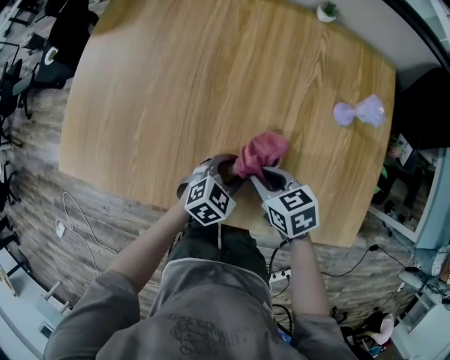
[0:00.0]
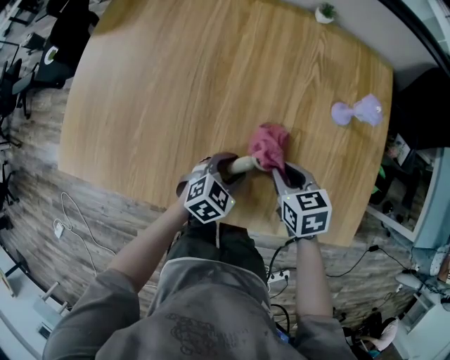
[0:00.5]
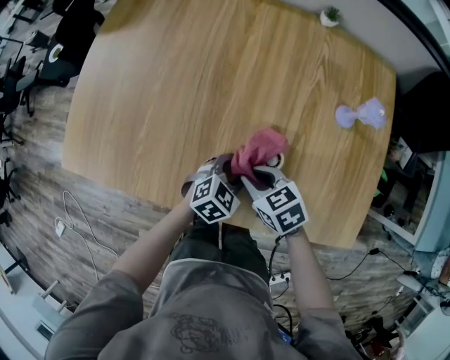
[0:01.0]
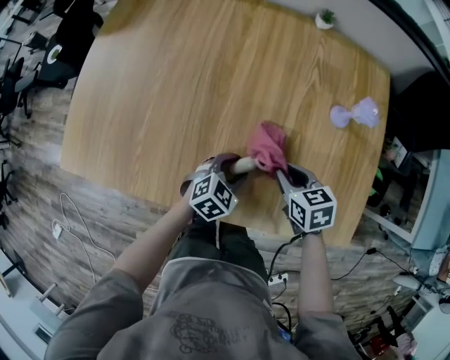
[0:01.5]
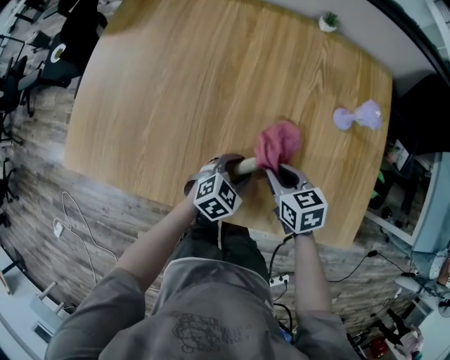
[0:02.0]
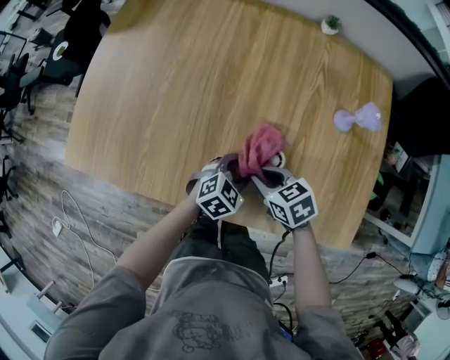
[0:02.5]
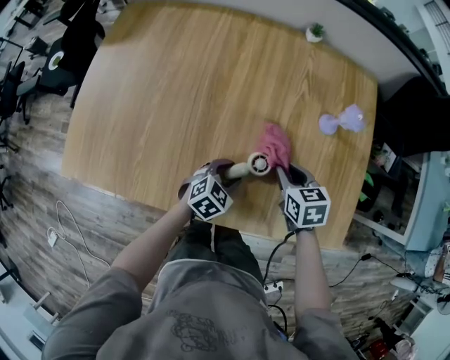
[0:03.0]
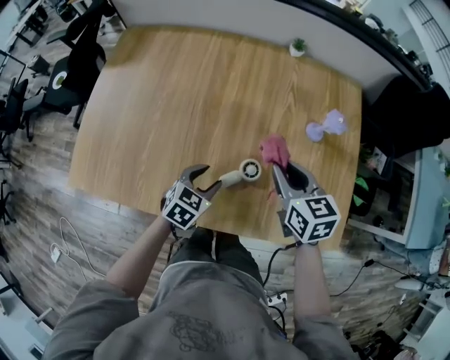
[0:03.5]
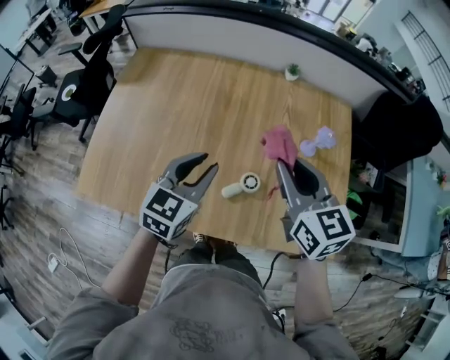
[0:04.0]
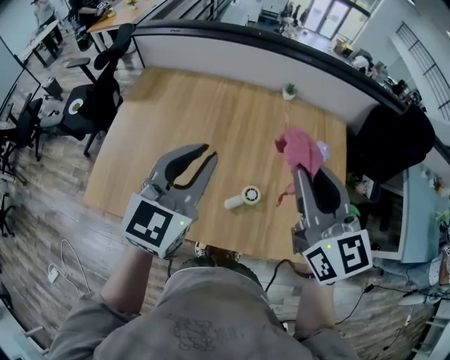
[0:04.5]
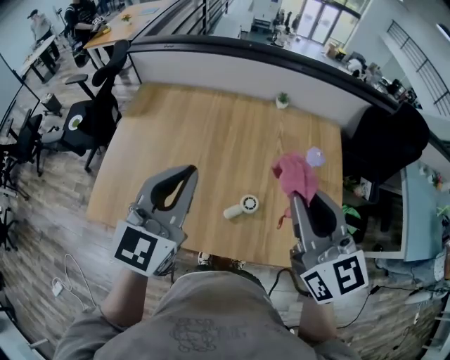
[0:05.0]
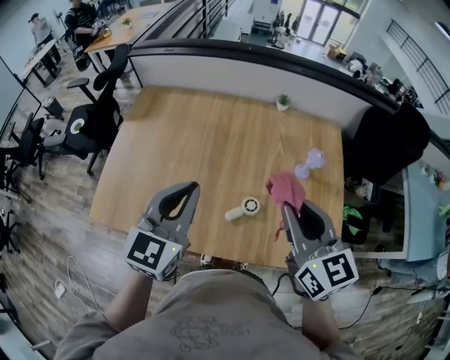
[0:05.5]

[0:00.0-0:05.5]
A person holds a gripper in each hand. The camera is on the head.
0:00.0 to 0:02.0: The right gripper goes left and right, roughly 10 cm each way, reversing 2 times.
0:02.0 to 0:03.5: The left gripper heads upward and to the left, covering roughly 10 cm. The right gripper heads upward, covering some 15 cm.
0:03.5 to 0:05.5: The right gripper moves upward, roughly 20 cm, and swivels about 20 degrees. Meanwhile the left gripper shifts about 35 cm upward, tilts its fingers approximately 40 degrees upward, and closes up.

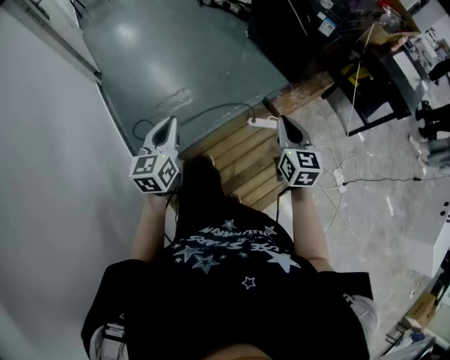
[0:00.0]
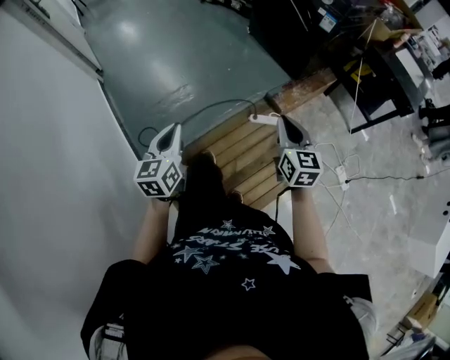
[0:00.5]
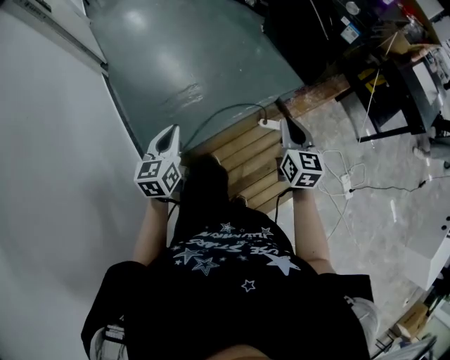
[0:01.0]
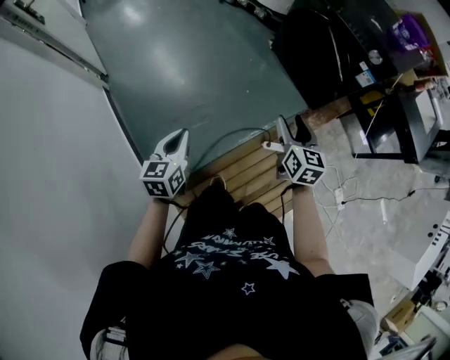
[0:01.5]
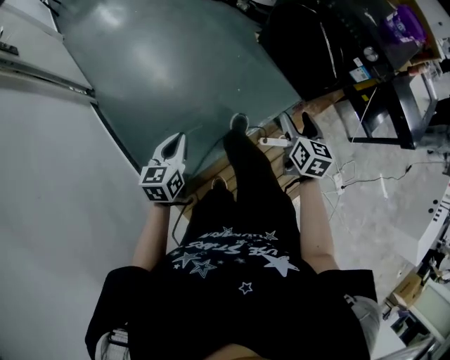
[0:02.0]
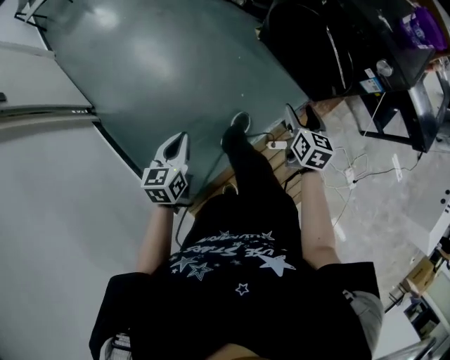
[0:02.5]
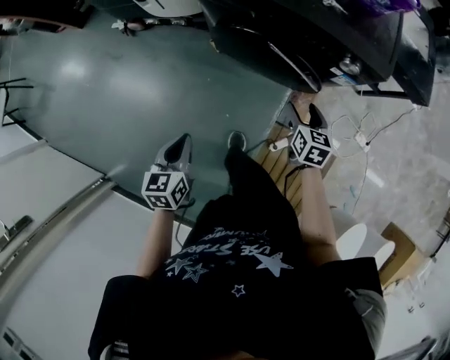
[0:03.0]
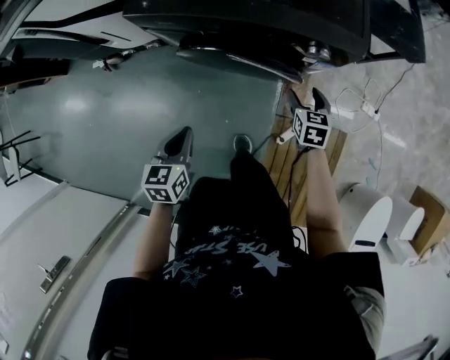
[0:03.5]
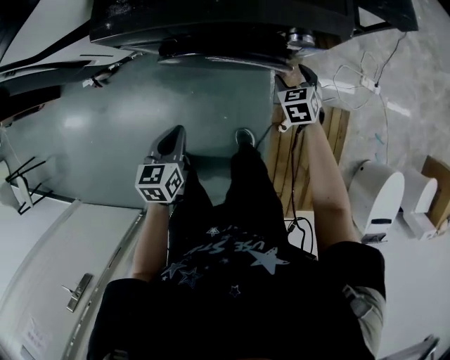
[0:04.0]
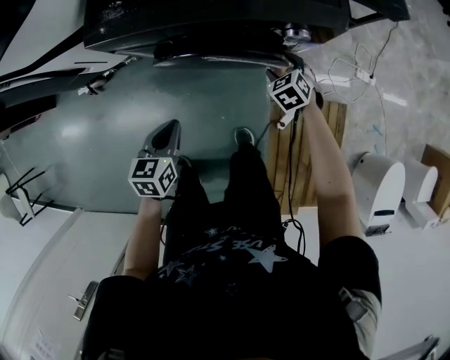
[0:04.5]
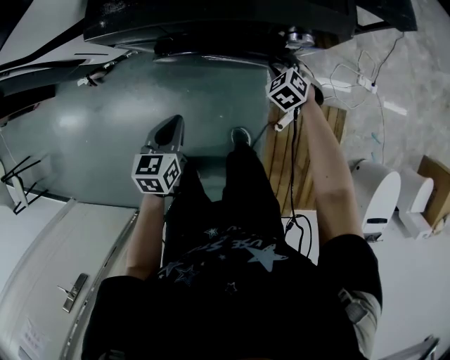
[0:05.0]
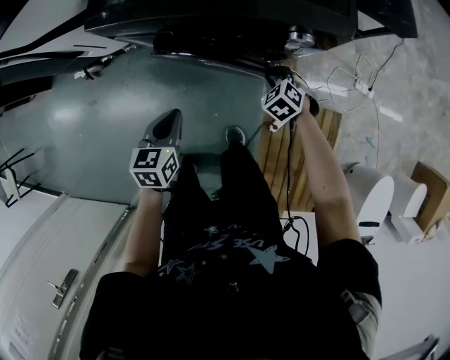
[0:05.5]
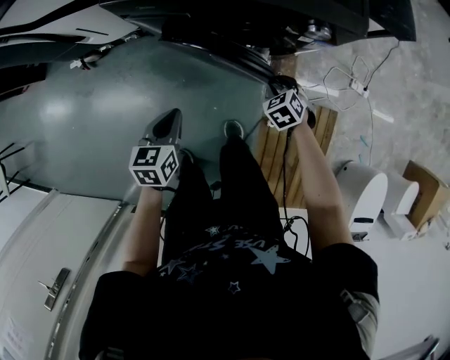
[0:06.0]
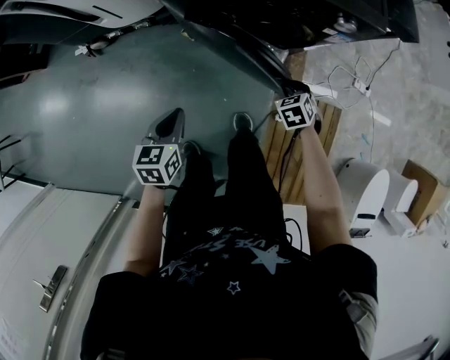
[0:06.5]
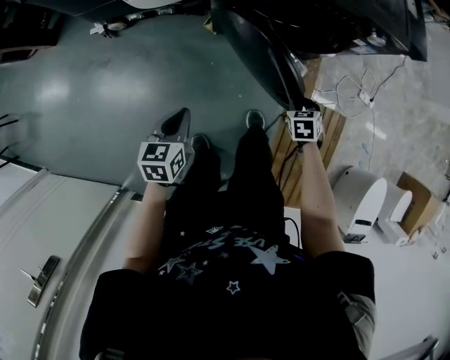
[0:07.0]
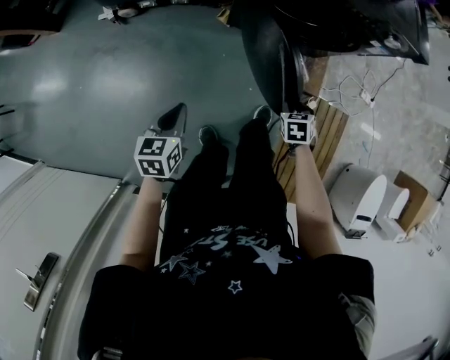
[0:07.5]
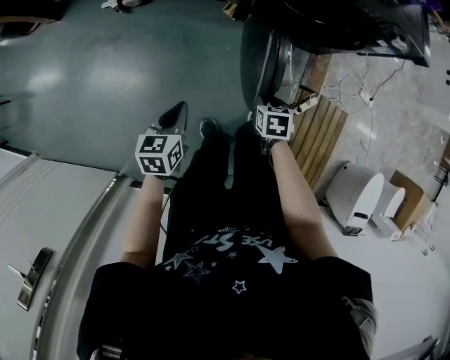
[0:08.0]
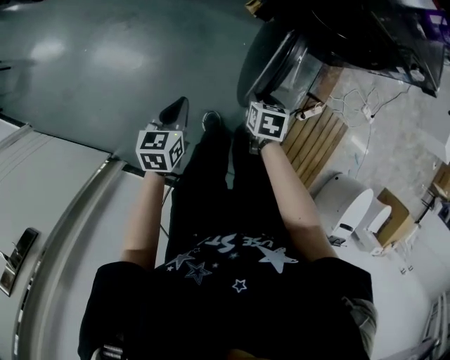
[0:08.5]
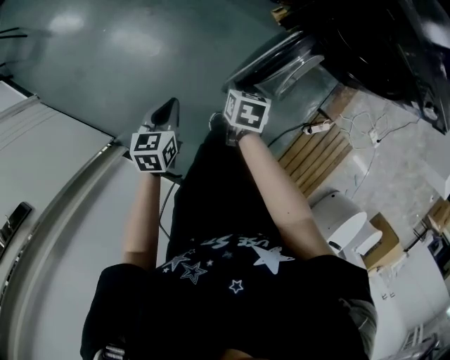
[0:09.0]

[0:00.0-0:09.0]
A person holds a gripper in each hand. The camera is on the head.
0:00.0 to 0:02.0: The left gripper shifts about 30 cm forward and to the left. The right gripper moves forward, about 35 cm, and opens up.
0:02.0 to 0:04.5: Both grippers are carried about 50 cm. The left gripper swivels roughly 60 degrees, while the right gripper rotates roughly 40 degrees.
0:04.5 to 0:07.0: The two grippers go about 25 cm backward and to the left. The right gripper closes up.
0:07.0 to 0:09.0: The right gripper moves about 40 cm, and turns by some 20 degrees, while the left gripper shifts by approximately 25 cm, and swivels approximately 20 degrees.

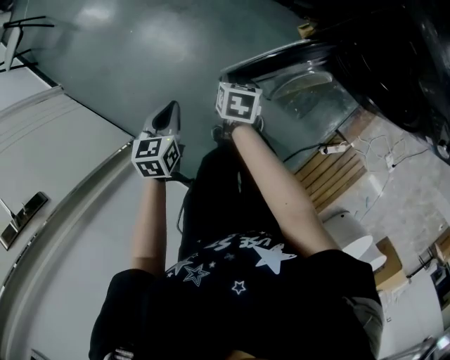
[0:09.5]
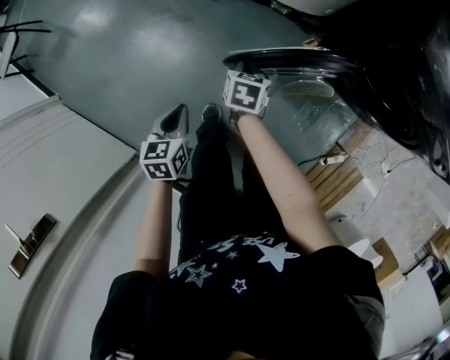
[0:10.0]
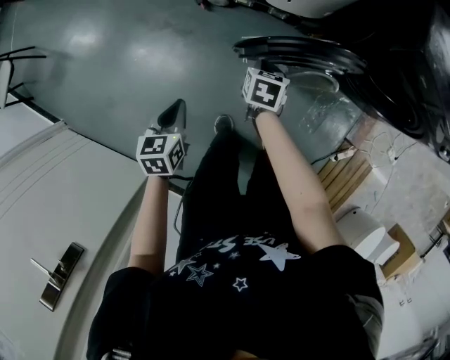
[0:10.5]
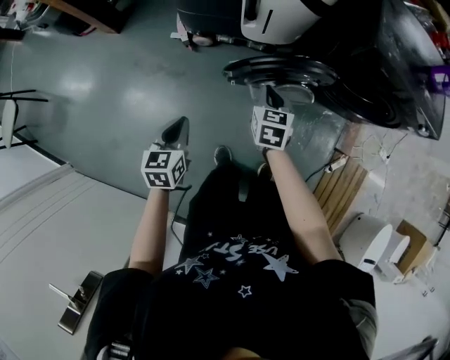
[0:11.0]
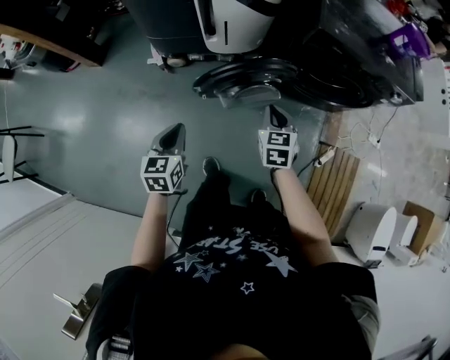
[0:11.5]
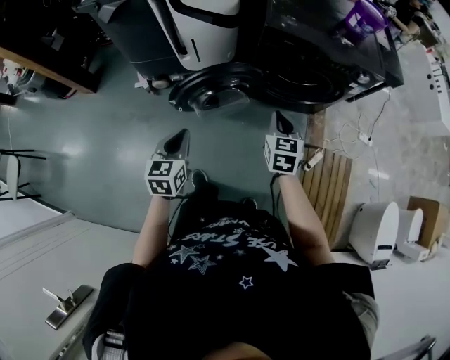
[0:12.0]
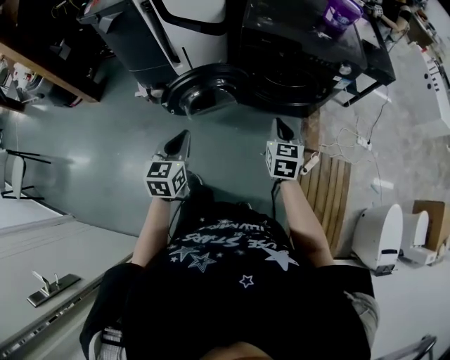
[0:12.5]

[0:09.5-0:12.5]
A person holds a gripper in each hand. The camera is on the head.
0:09.5 to 0:11.0: The right gripper moves some 20 cm, turns by roughly 30 degrees, and closes up. Meanwhile the left gripper changes place by approximately 20 cm, and swivels about 20 degrees.
0:11.0 to 0:12.5: The right gripper shifts about 40 cm to the right; the left gripper heads to the right and upward, covering about 35 cm.

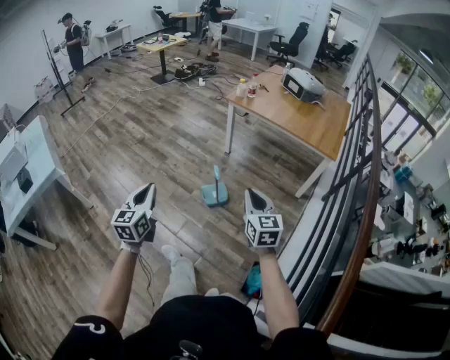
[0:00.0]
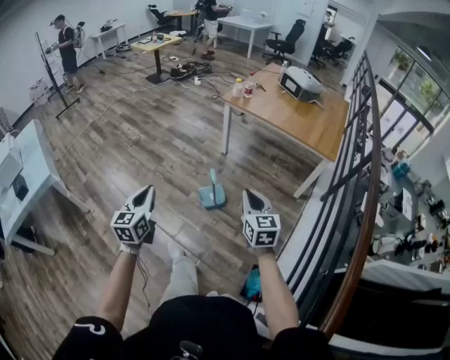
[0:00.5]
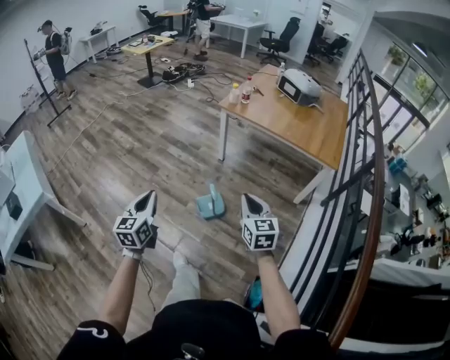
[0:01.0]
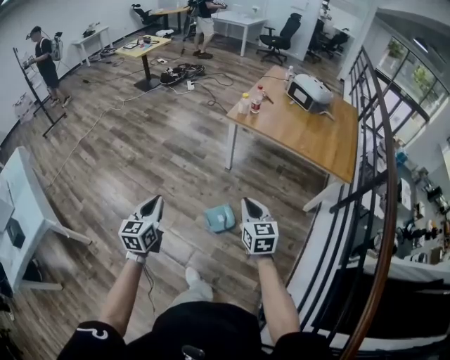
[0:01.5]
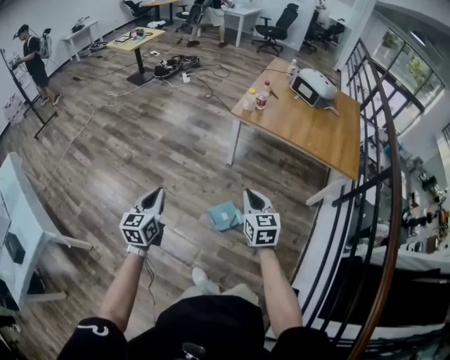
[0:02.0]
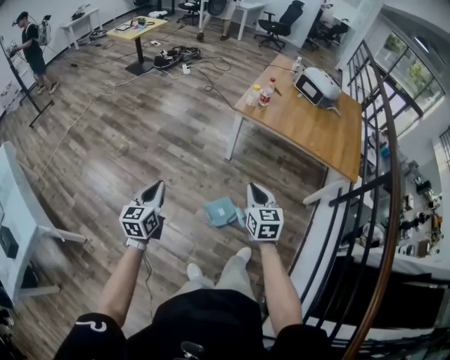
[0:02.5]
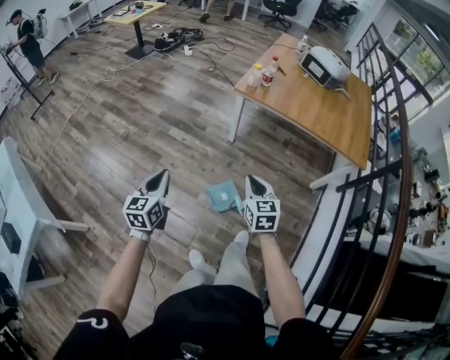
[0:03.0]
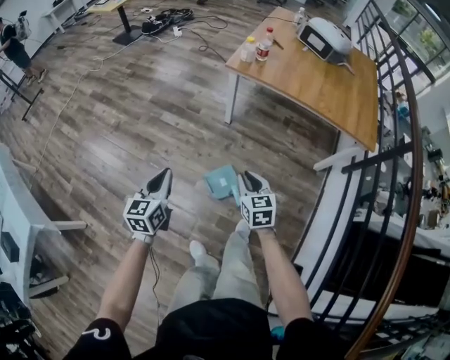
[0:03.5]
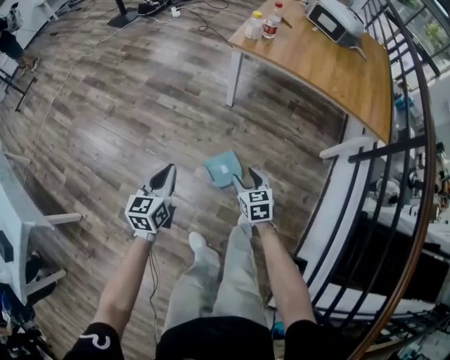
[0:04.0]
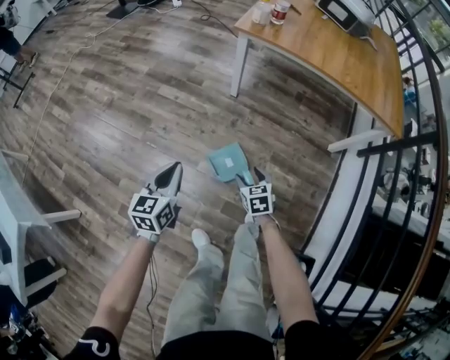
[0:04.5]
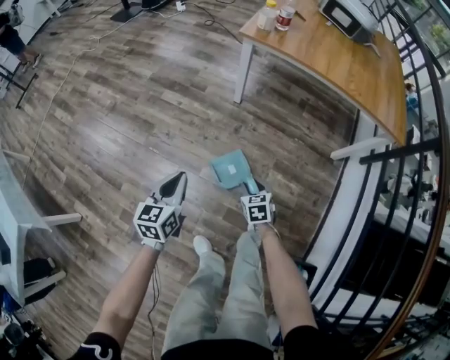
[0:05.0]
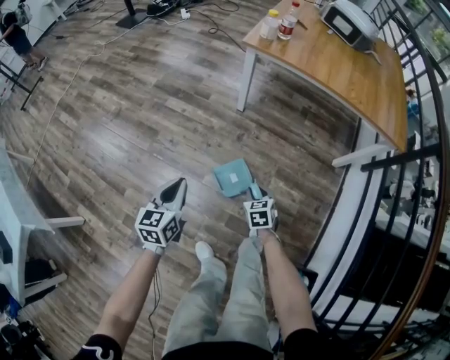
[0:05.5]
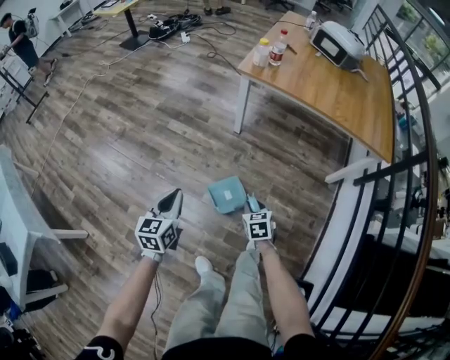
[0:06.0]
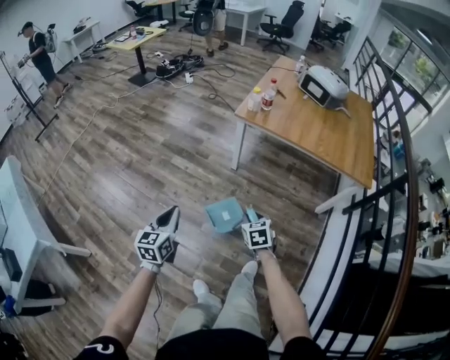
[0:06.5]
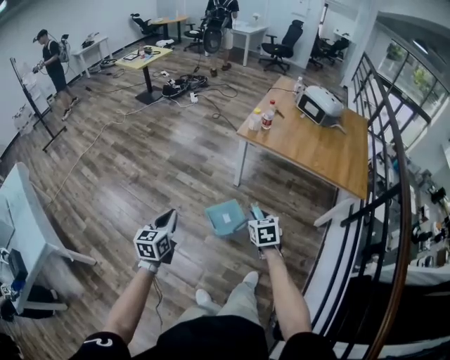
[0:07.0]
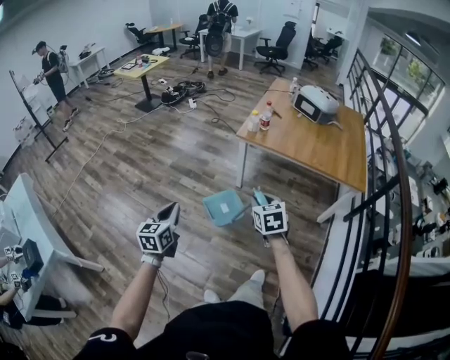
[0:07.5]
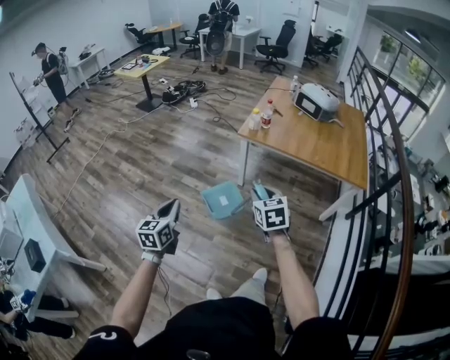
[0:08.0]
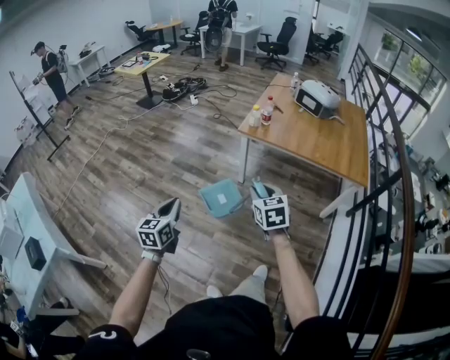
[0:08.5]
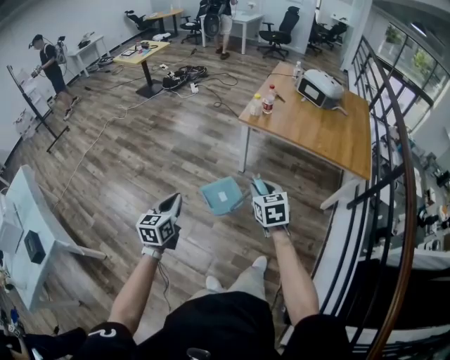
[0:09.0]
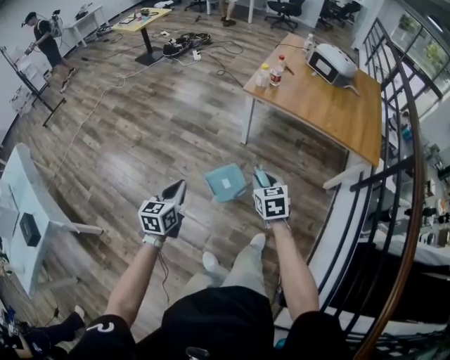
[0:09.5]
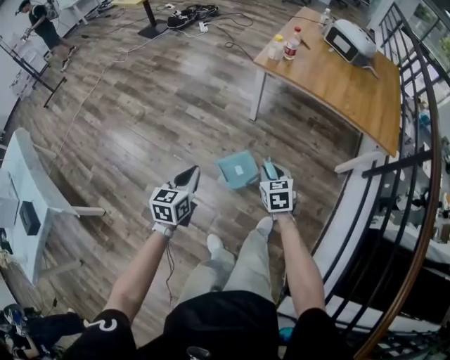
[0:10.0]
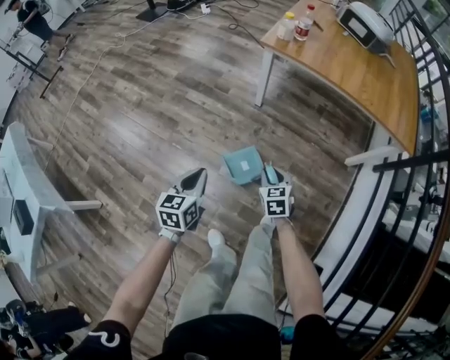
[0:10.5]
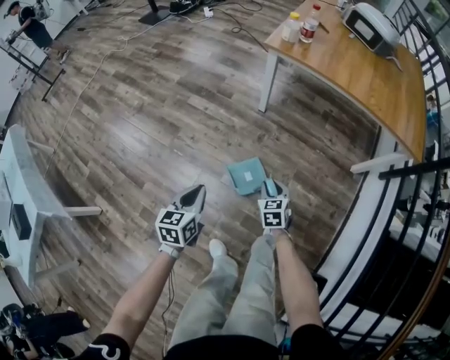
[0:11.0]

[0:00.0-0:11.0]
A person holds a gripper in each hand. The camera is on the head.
0:00.0 to 0:02.0: The pair of grippers is taken forward and to the left, about 40 cm.
0:02.0 to 0:03.5: The left gripper shifts approximately 15 cm downward, to the right and forward; the right gripper goes roughly 20 cm downward.
0:03.5 to 0:05.5: The right gripper travels downward by roughly 25 cm, rotates about 20 degrees, and opens and closes again. Meanwhile the left gripper goes approximately 15 cm downward.
0:05.5 to 0:07.5: The right gripper shifts roughly 50 cm upward. Meanwhile the left gripper goes roughly 30 cm upward.
0:07.5 to 0:09.0: The grippers make only small movements.
0:09.0 to 0:11.0: The grippers both shift downward by some 35 cm.
